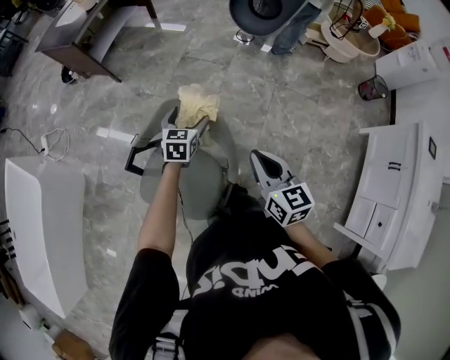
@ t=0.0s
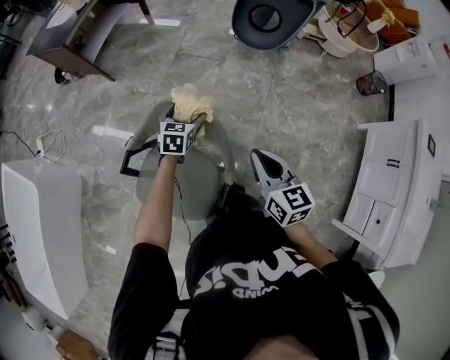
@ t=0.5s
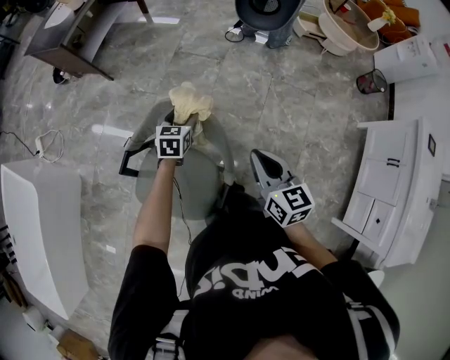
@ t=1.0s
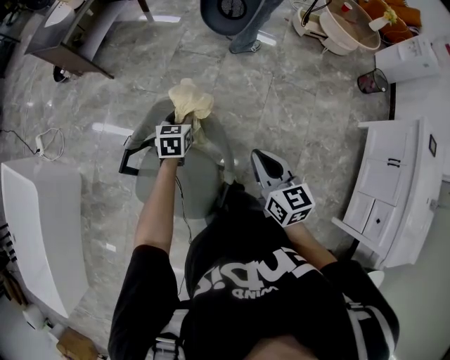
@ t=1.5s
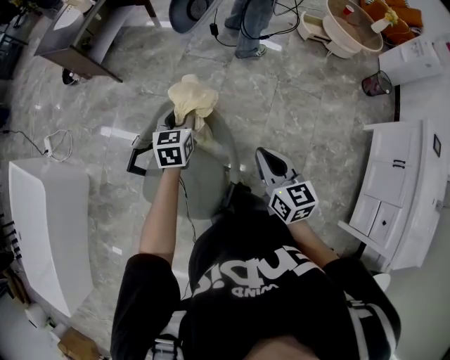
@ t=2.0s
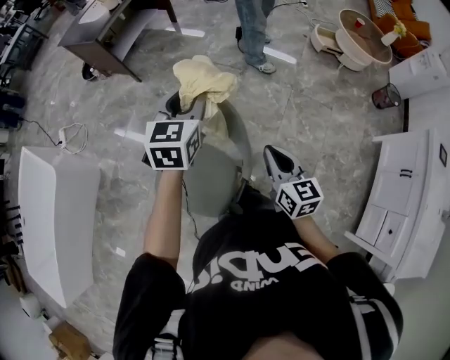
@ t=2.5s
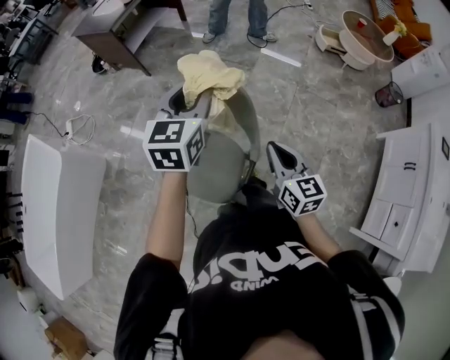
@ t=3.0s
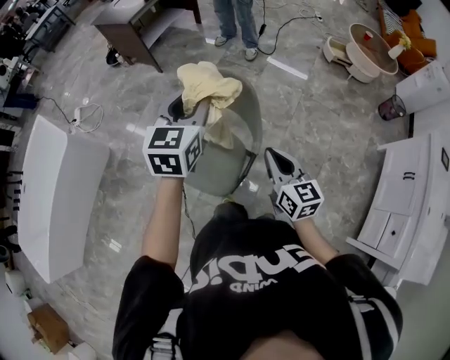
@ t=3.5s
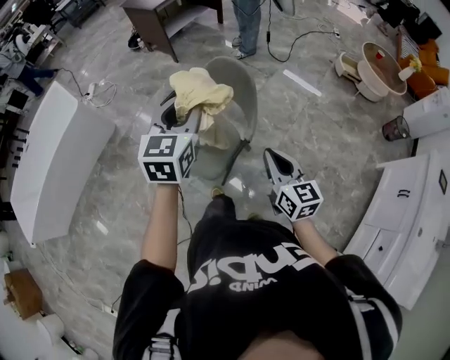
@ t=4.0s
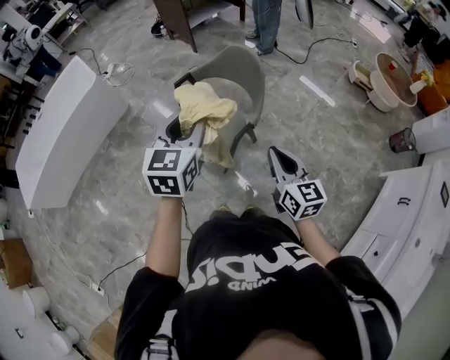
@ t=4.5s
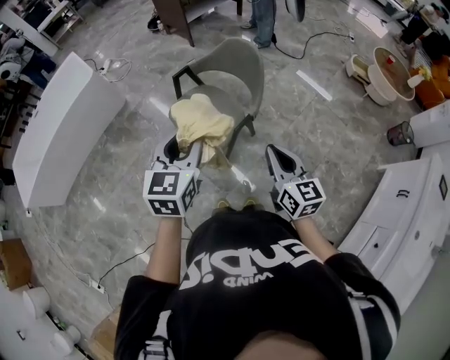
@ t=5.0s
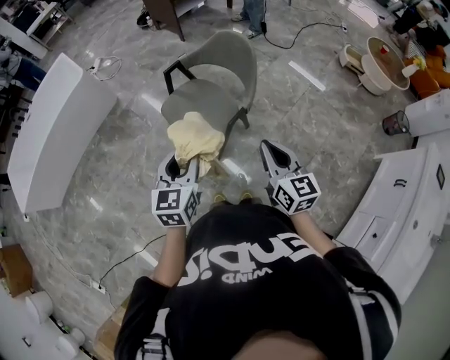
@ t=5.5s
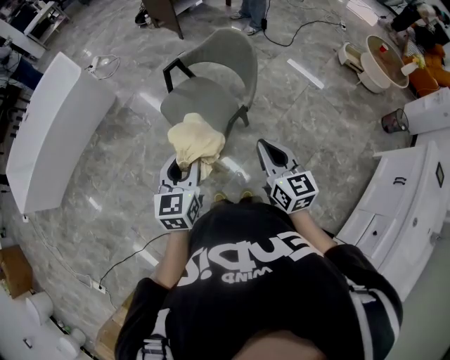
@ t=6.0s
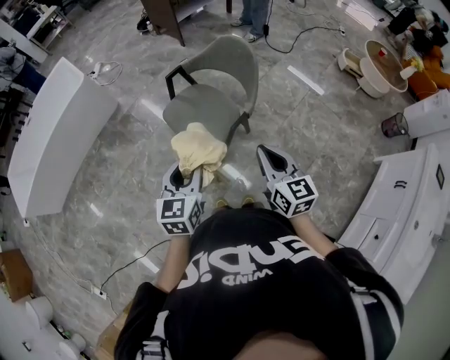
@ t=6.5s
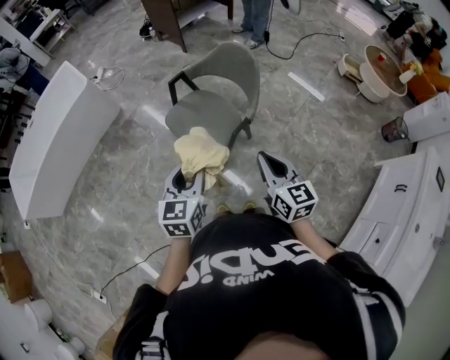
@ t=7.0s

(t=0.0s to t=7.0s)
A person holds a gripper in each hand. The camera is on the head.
t=0.0s - t=2.0s: The left gripper shifts about 5 cm upward, and closes.
t=2.0s - t=3.5s: The right gripper shifts some 15 cm backward. Meanwhile the left gripper is displaced upward and backward by about 30 cm.
t=3.5s - t=5.0s: The left gripper shifts about 35 cm backward, while the right gripper is displaced backward by some 20 cm.
t=5.0s - t=7.0s: The left gripper goes some 10 cm downward.

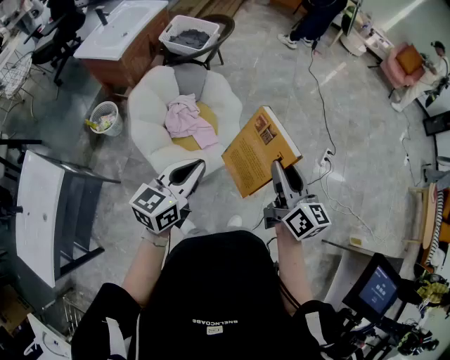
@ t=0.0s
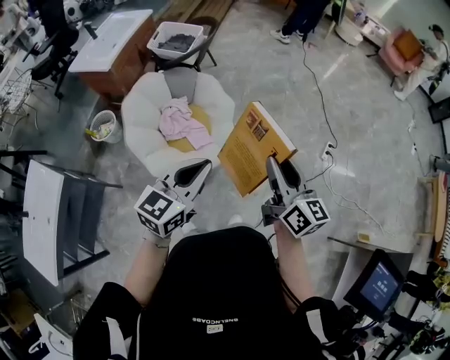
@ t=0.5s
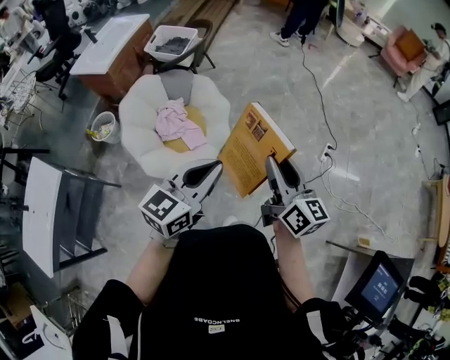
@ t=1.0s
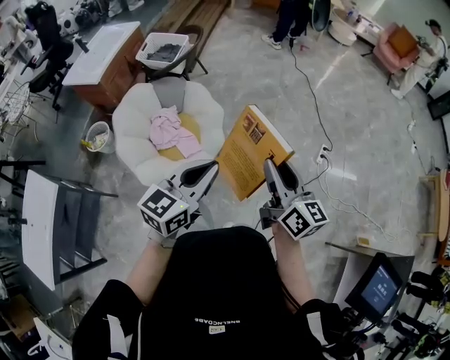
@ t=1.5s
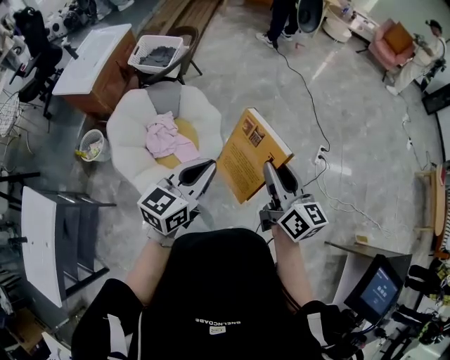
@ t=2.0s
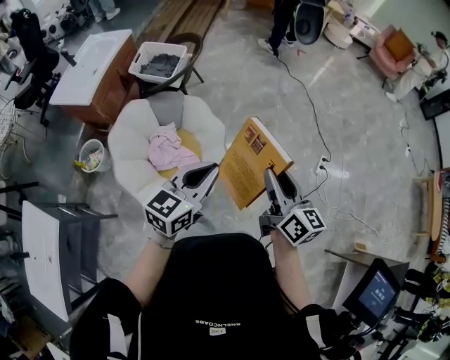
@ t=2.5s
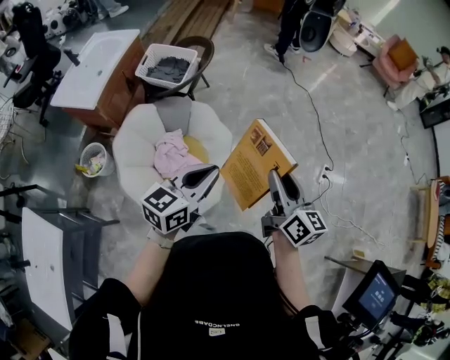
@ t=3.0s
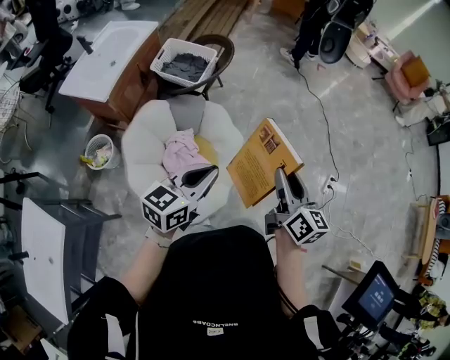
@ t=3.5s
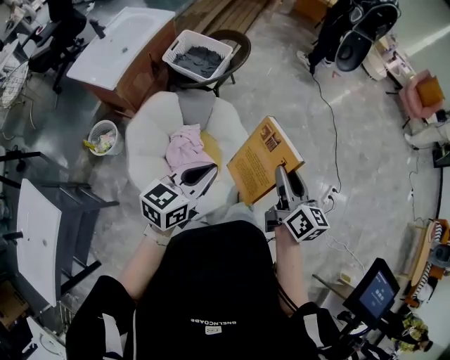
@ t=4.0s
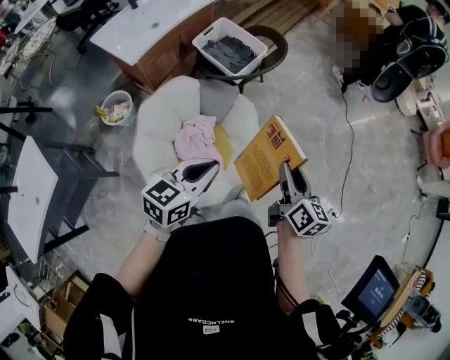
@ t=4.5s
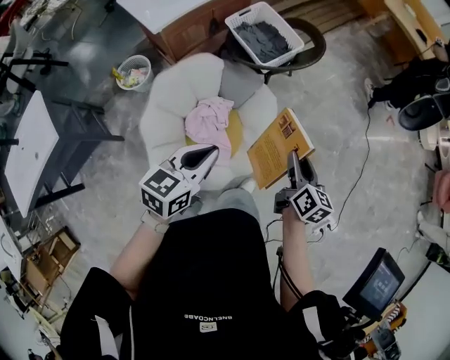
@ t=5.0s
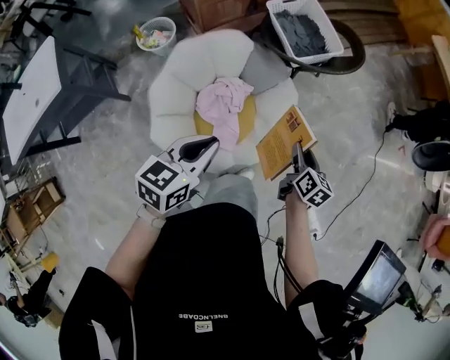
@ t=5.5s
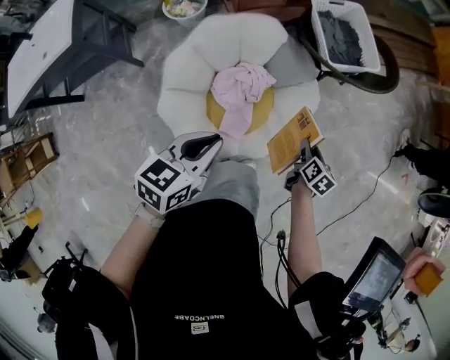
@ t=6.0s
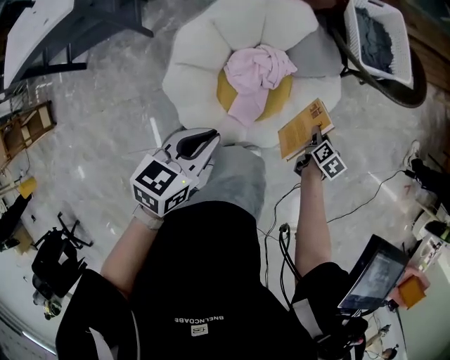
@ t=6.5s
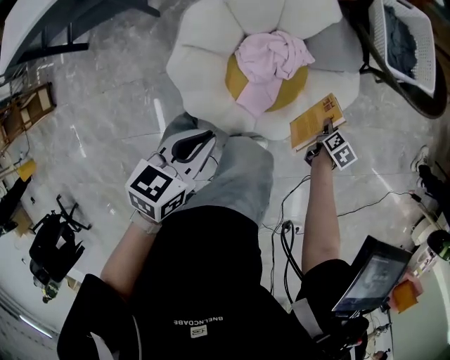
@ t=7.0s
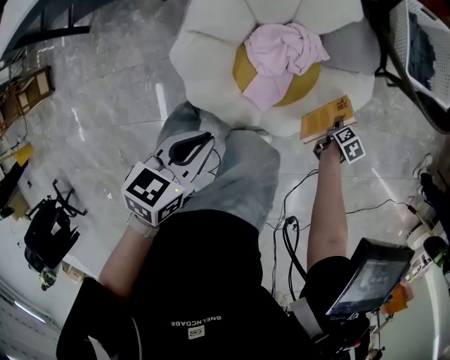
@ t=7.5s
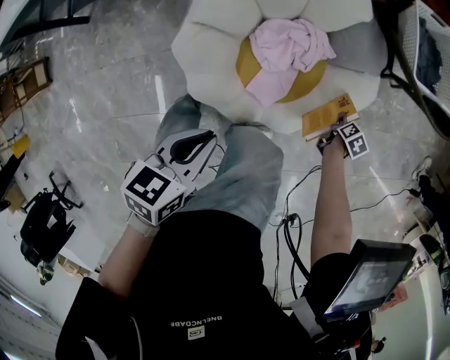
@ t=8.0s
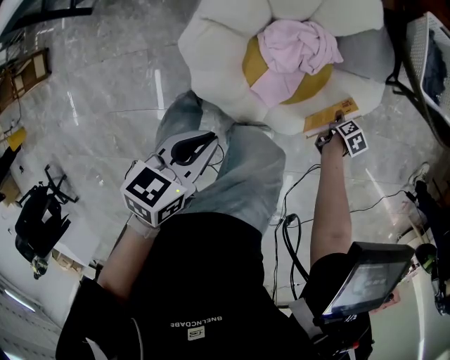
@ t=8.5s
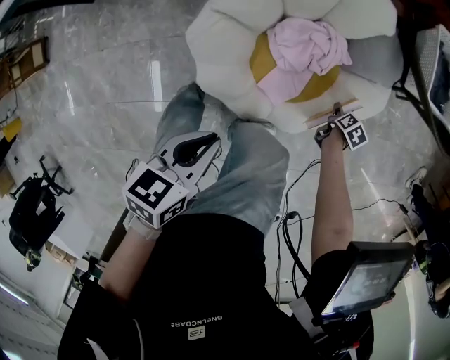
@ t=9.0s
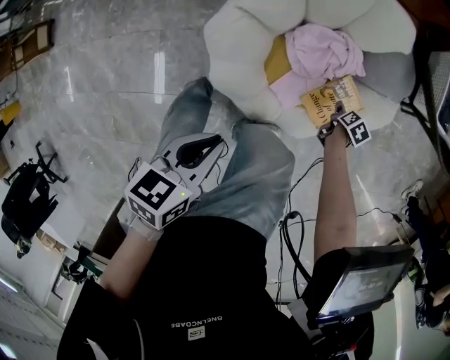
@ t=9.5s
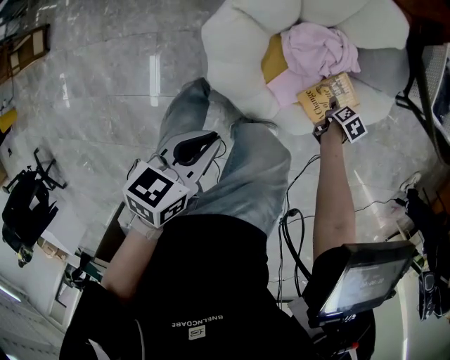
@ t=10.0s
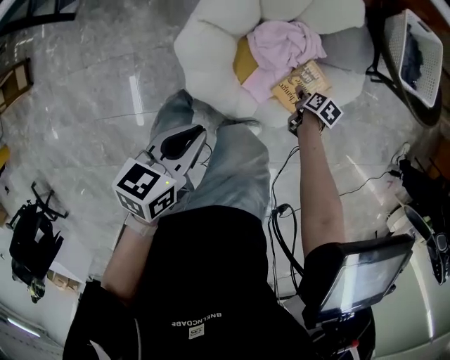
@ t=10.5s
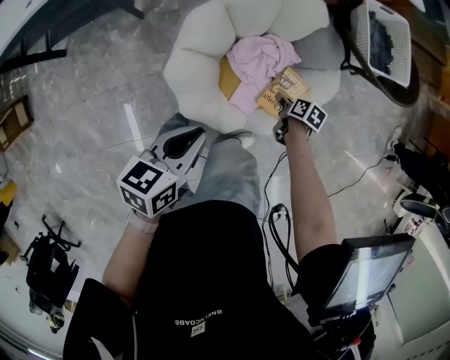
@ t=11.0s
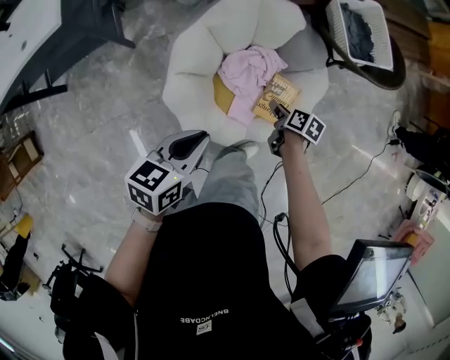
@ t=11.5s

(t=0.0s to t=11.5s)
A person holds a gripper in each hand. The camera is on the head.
t=0.0s - t=2.0s: Both grippers move to the right and forward, roughly 20 cm.
t=2.0s - t=4.0s: The grippers both shift to the left and forward by approximately 30 cm.
t=4.0s - t=6.0s: The left gripper shifts about 15 cm downward, and changes its angle by some 50 degrees. The right gripper heads downward, covering some 40 cm, and tilts its fingers about 40 degrees downward.
t=6.0s - t=7.5s: The left gripper travels downward and backward by about 20 cm, and turns by about 20 degrees, while the right gripper moves downward, roughly 25 cm.
t=7.5s - t=9.5s: The right gripper is displaced to the left and downward by some 15 cm. The left gripper moves backward, some 10 cm.
t=9.5s - t=11.5s: The left gripper is displaced upward and forward by approximately 20 cm, and rotates some 20 degrees; the right gripper is displaced upward and to the left by approximately 30 cm, and swivels some 20 degrees.

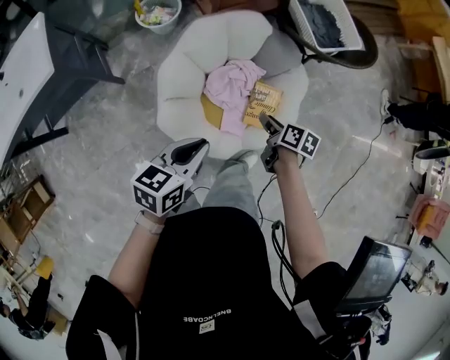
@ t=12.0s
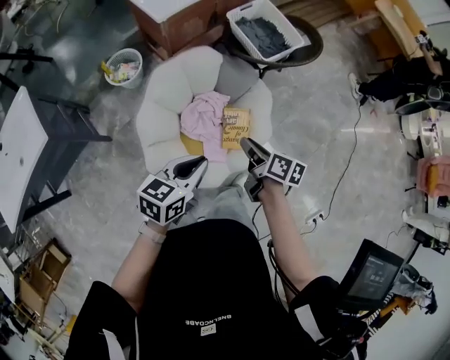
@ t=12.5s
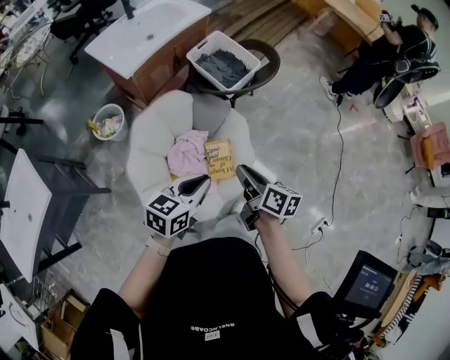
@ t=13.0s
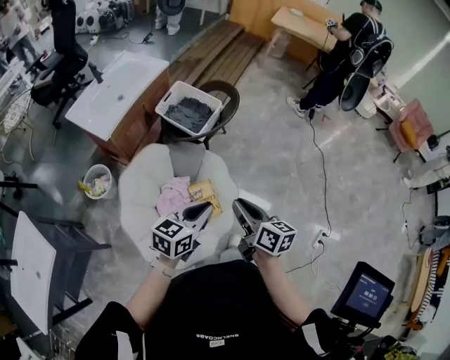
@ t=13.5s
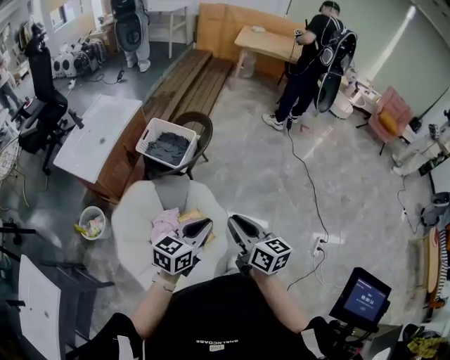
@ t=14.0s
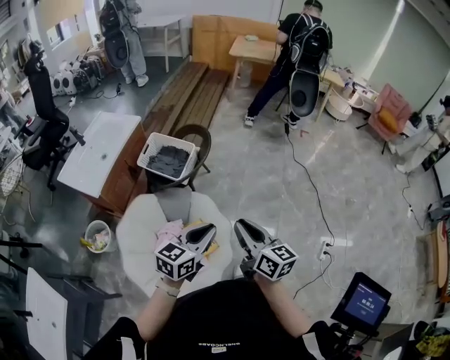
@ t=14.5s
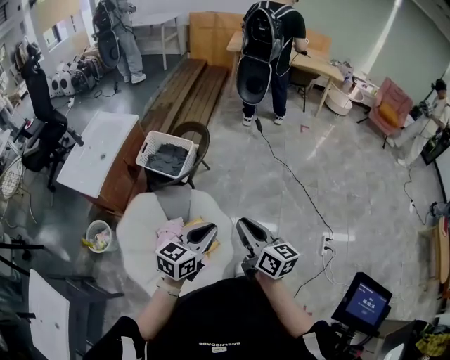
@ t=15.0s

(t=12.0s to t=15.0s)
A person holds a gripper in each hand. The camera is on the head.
t=12.0s - t=13.5s: The left gripper moves approximately 30 cm, and turns by some 40 degrees. The right gripper travels upward by roughly 30 cm, and tilts its fingers some 30 degrees upward.
t=13.5s - t=15.0s: The left gripper heads to the right, covering roughly 10 cm, while the right gripper shifts some 10 cm to the right and upward.

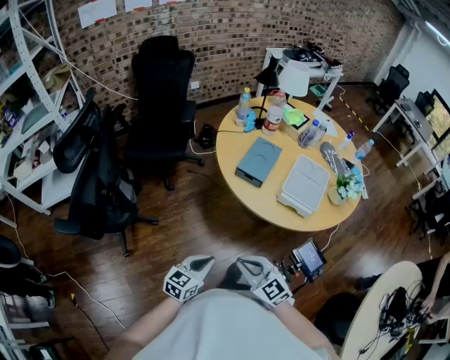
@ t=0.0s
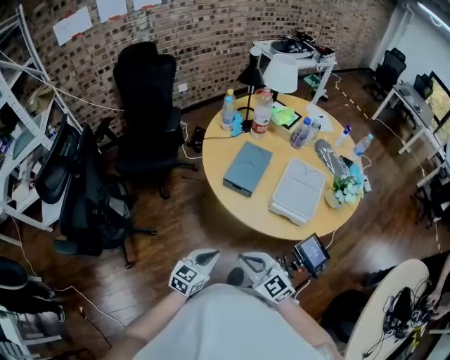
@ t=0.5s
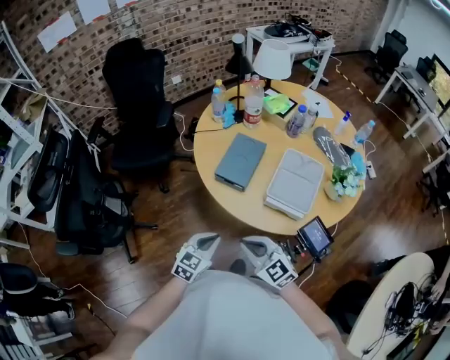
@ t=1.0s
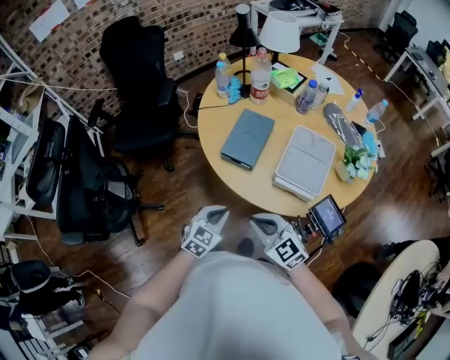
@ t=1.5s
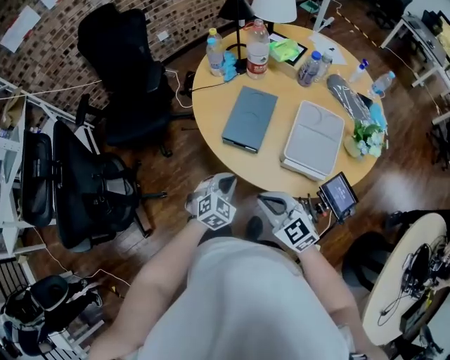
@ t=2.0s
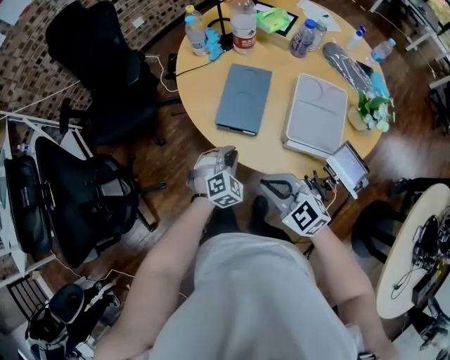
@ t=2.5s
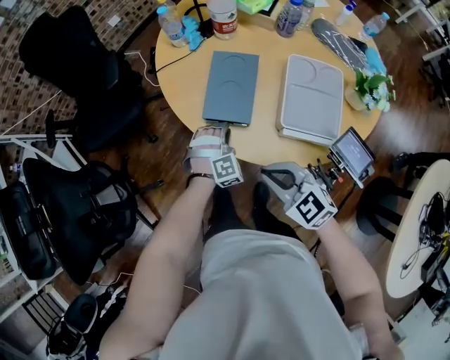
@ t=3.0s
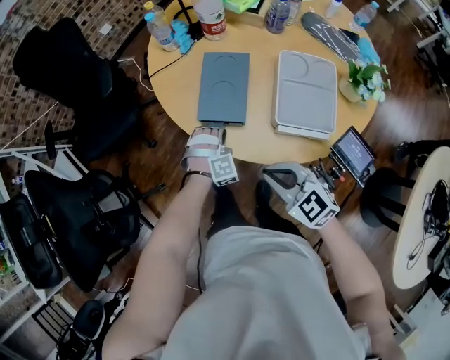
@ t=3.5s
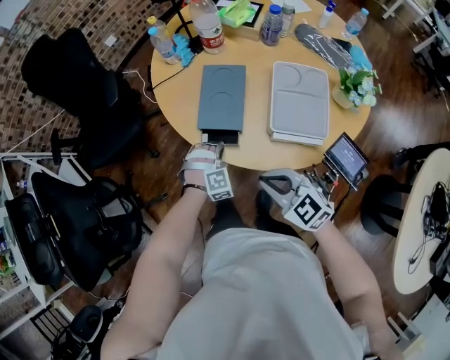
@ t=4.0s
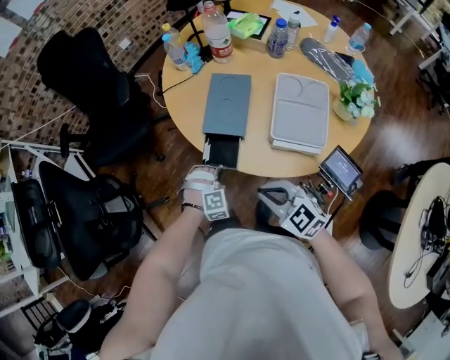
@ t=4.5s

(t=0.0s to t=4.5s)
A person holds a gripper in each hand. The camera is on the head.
t=0.0s - t=2.0s: Both grippers travel together forward and to the right, approximately 25 cm. The left gripper twists approximately 40 degrees clockwise, seen from behind.
t=2.0s - t=4.5s: The left gripper goes about 10 cm downward, moves some 10 cm forward and comes back, twists some 50 degrees clockwise, seen from behind, and opens and closes again.
